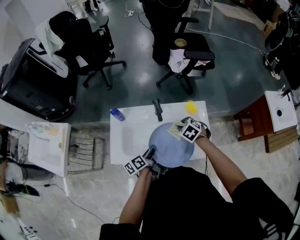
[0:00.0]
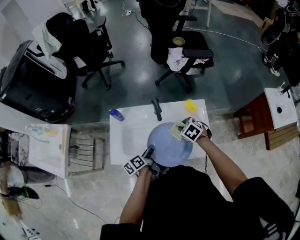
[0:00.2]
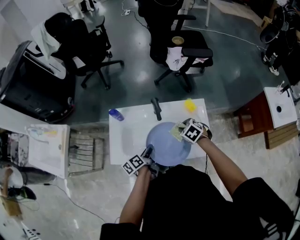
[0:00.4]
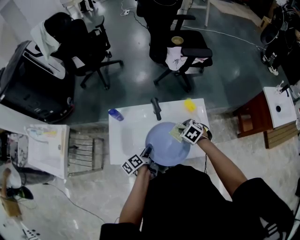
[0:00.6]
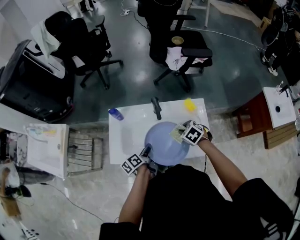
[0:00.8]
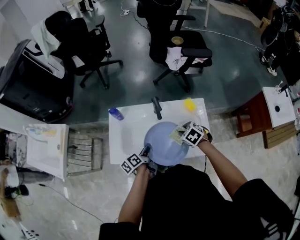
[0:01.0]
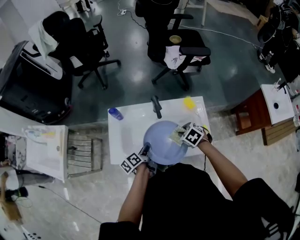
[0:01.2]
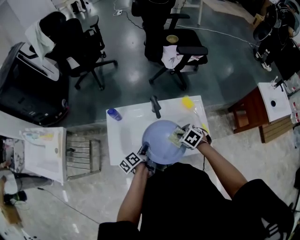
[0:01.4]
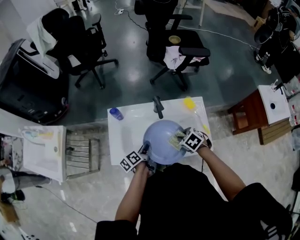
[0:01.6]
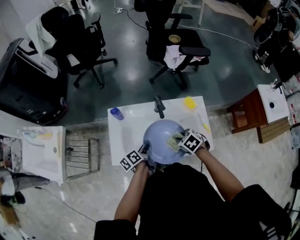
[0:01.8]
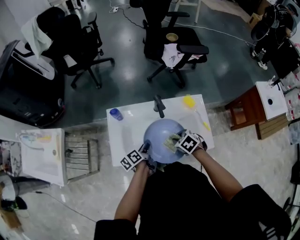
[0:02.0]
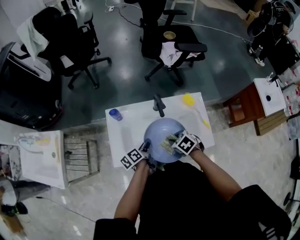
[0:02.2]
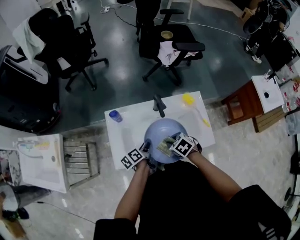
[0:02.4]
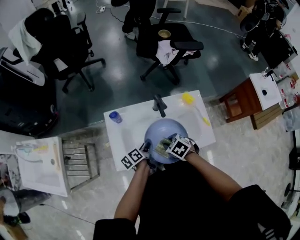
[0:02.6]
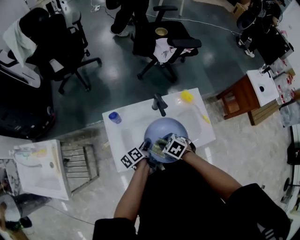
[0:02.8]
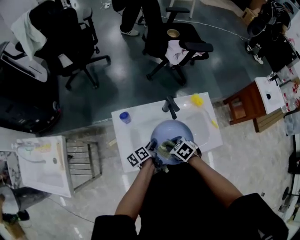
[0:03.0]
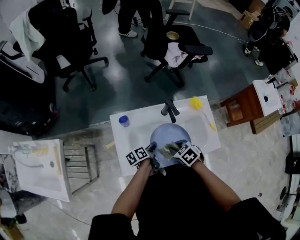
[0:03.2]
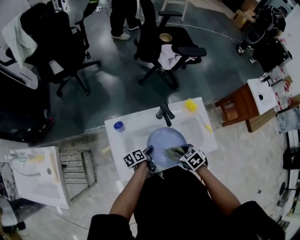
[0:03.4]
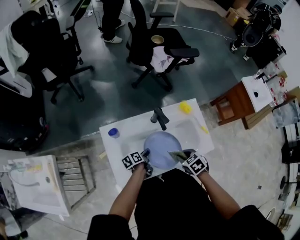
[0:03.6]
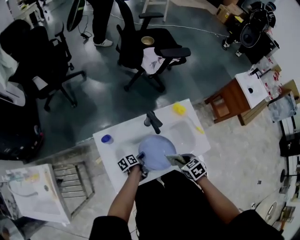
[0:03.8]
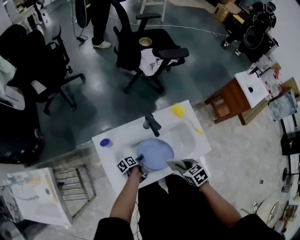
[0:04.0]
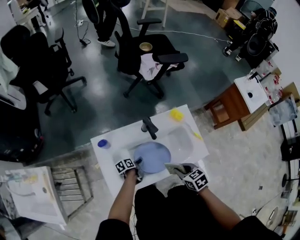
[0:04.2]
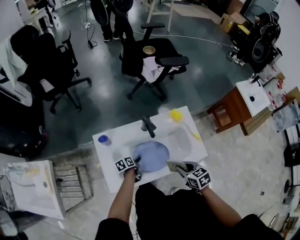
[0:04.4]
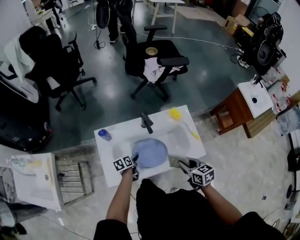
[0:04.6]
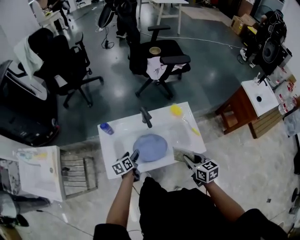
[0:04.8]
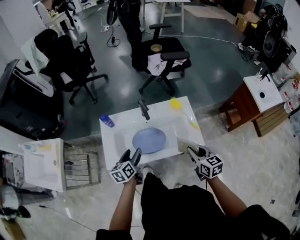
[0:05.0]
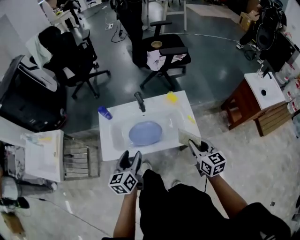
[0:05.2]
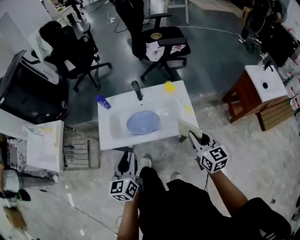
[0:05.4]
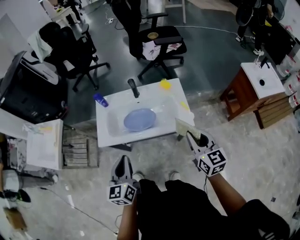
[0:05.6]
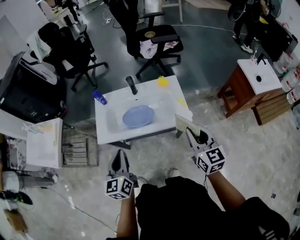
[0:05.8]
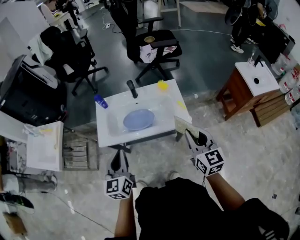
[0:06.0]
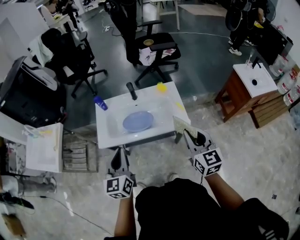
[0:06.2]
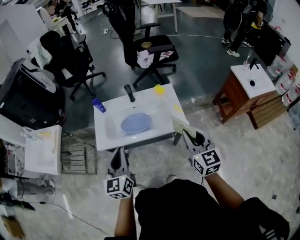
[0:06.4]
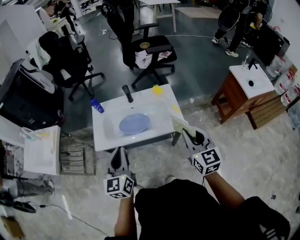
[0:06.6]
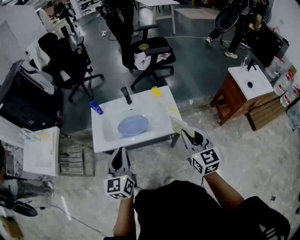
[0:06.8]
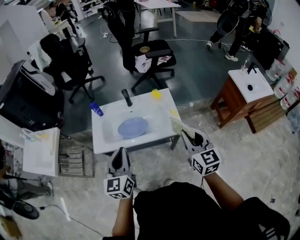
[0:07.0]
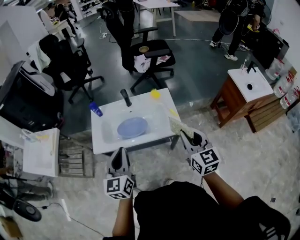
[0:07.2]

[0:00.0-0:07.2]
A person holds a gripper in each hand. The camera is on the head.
0:00.0 to 0:01.4: The right gripper goes some 5 cm backward, while the left gripper shifts by about 5 cm.
0:01.4 to 0:02.8: The left gripper moves about 5 cm; the right gripper travels to the left by approximately 15 cm.
0:02.8 to 0:04.4: The right gripper moves some 15 cm, and rotates about 40 degrees, while the left gripper moves downward, approximately 15 cm, rotates approximately 30 degrees, and opens.
0:04.4 to 0:05.8: The left gripper moves upward and backward, about 50 cm, tilts its fingers some 30 degrees upward, and closes up; the right gripper goes roughly 30 cm upward, to the right and backward, and tips its fingers upward by some 40 degrees.
0:05.8 to 0:07.2: The left gripper travels to the right and upward by roughly 5 cm.

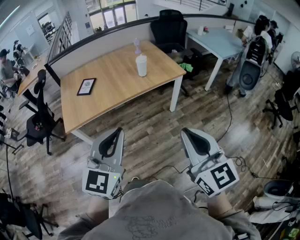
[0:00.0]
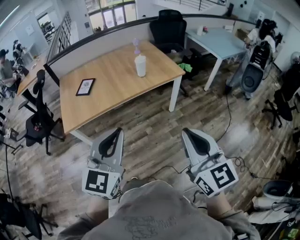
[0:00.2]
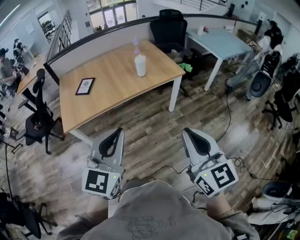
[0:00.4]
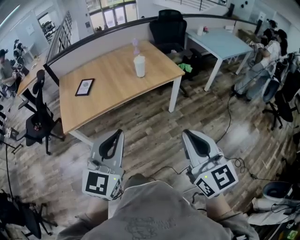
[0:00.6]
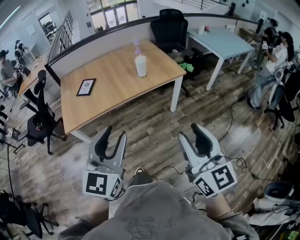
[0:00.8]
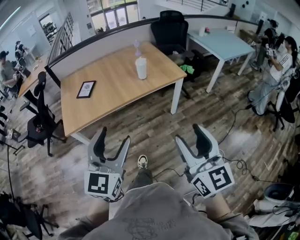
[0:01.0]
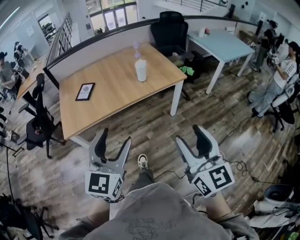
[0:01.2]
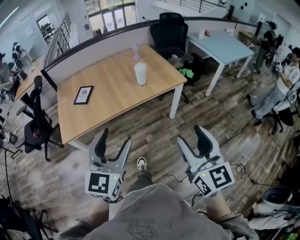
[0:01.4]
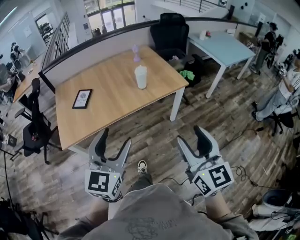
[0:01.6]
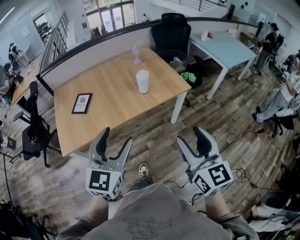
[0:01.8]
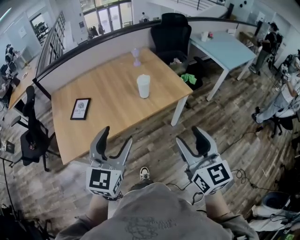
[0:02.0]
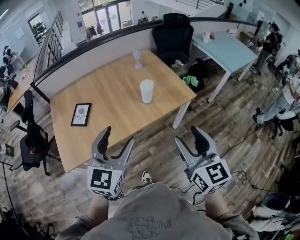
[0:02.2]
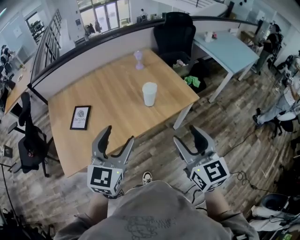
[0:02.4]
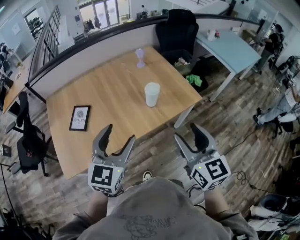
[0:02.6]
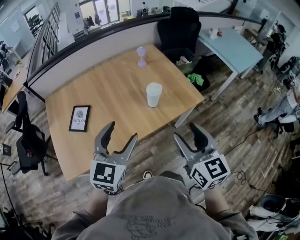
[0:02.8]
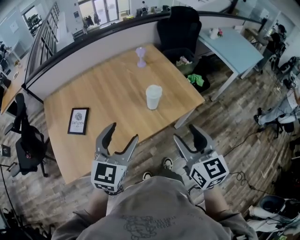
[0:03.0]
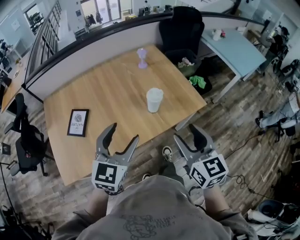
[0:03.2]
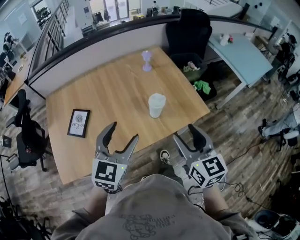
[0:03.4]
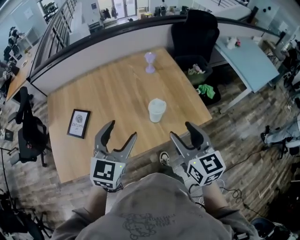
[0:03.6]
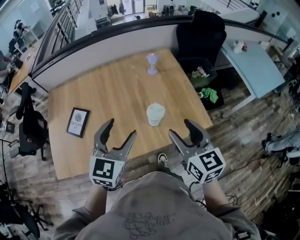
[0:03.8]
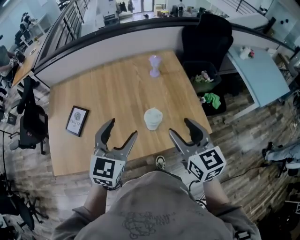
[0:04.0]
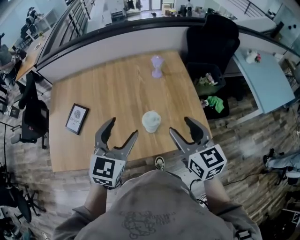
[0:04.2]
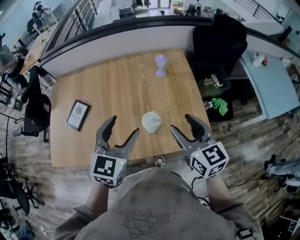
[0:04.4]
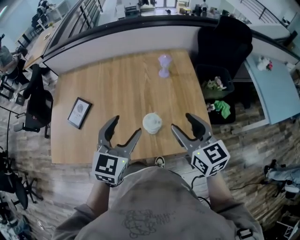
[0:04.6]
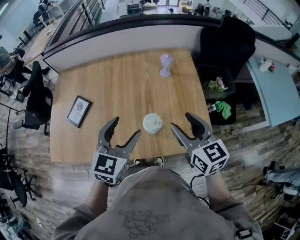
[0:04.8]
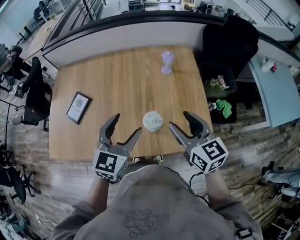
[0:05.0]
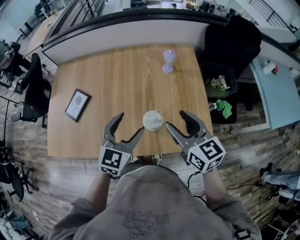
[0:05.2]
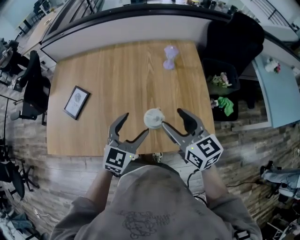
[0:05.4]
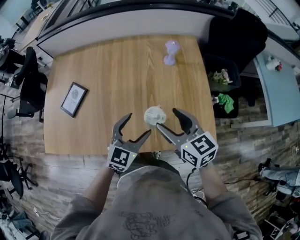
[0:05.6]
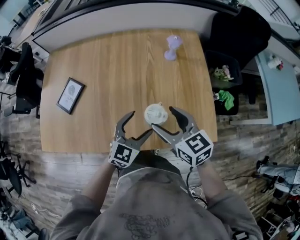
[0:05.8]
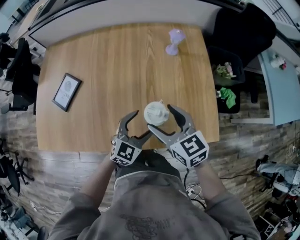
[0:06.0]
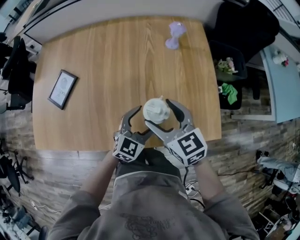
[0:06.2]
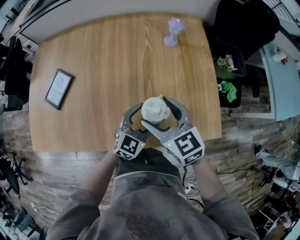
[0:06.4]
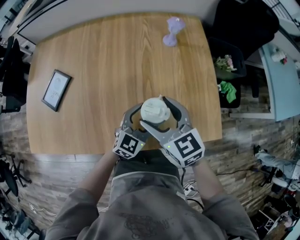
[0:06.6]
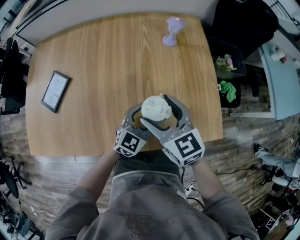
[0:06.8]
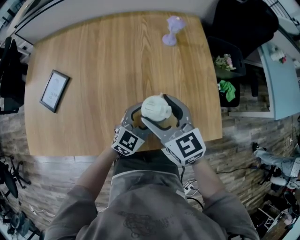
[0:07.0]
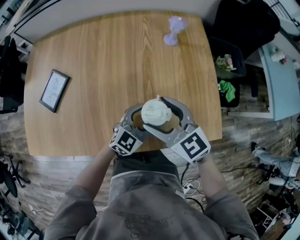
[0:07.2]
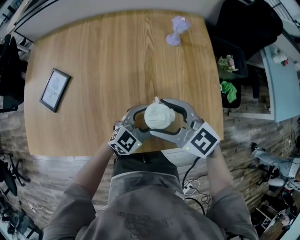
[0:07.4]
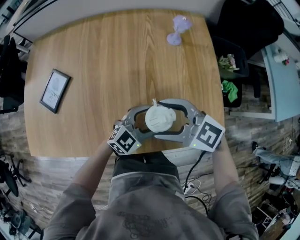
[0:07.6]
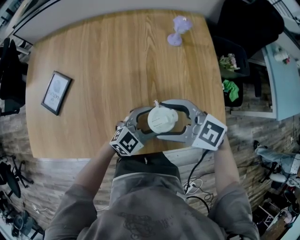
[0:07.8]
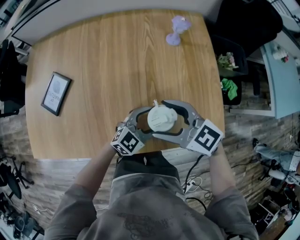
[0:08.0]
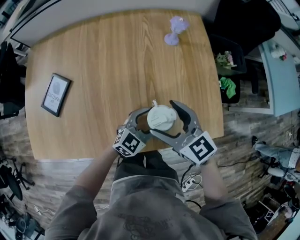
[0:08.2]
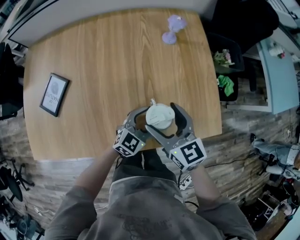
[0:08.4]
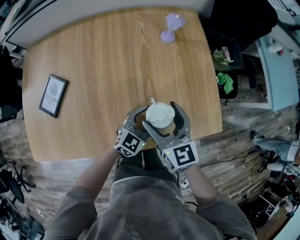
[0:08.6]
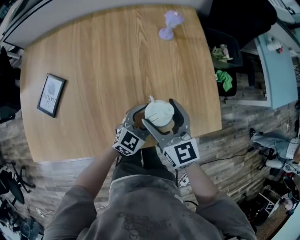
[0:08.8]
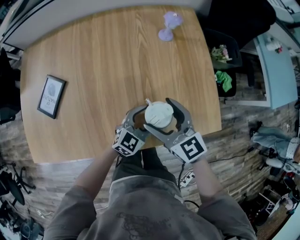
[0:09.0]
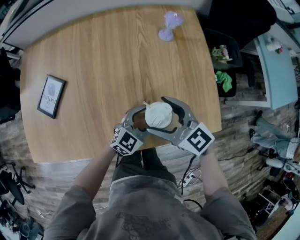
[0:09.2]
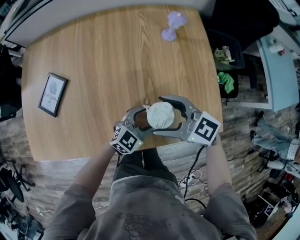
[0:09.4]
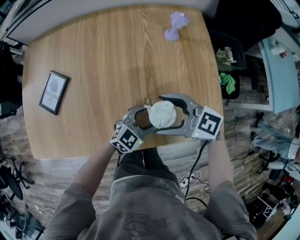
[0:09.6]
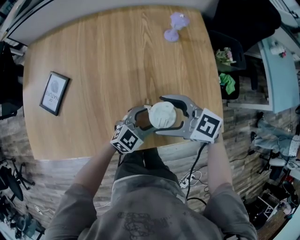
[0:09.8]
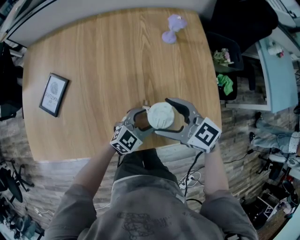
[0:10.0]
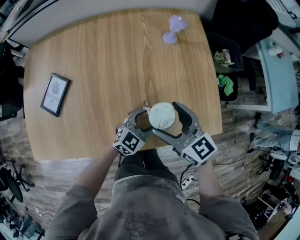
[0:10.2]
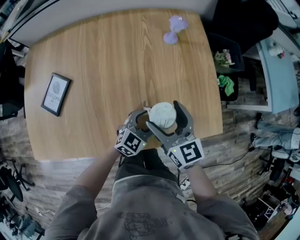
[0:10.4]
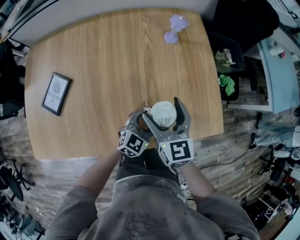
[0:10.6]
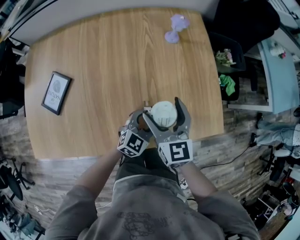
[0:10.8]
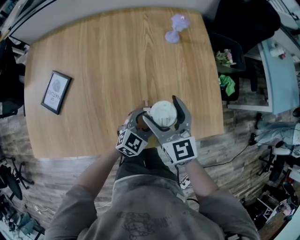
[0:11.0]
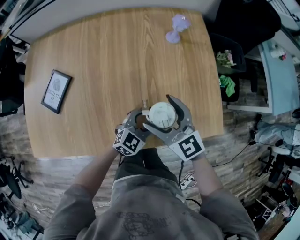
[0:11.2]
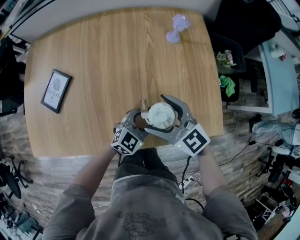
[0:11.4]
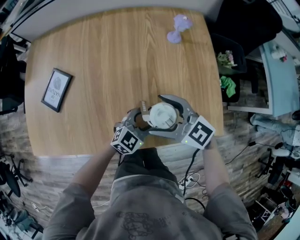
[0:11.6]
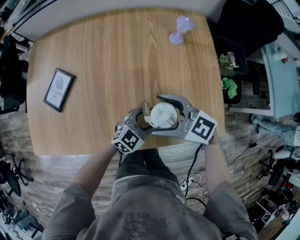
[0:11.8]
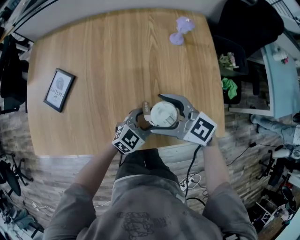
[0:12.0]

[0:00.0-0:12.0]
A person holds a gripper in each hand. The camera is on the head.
0:00.0 to 0:01.6: The two grippers go some 15 cm forward. The right gripper opens up. The left gripper opens.
0:01.6 to 0:03.0: The two grippers go roughly 30 cm forward.
0:03.0 to 0:04.4: The right gripper heads forward, covering roughly 25 cm, and changes its angle by some 30 degrees; the left gripper goes roughly 20 cm forward and to the right, and rotates approximately 20 degrees.
0:04.4 to 0:06.0: The right gripper is displaced downward, to the left and forward by approximately 20 cm. The left gripper goes about 25 cm downward.
0:06.0 to 0:07.6: The right gripper changes its angle by about 30 degrees. The left gripper travels downward by about 5 cm, and rotates approximately 20 degrees.
0:07.6 to 0:09.0: The right gripper rotates some 40 degrees.
0:10.4 to 0:12.0: The right gripper turns by roughly 40 degrees.

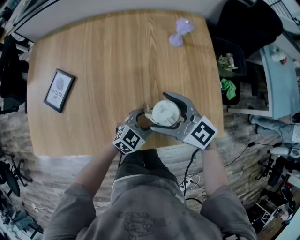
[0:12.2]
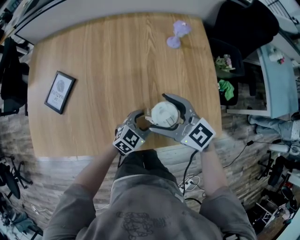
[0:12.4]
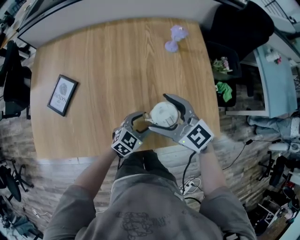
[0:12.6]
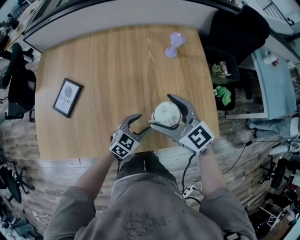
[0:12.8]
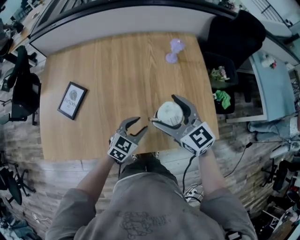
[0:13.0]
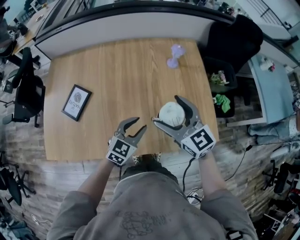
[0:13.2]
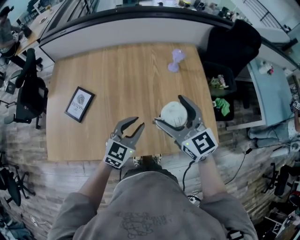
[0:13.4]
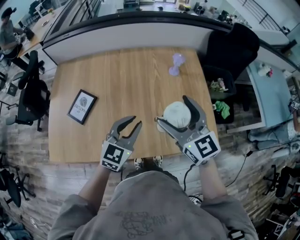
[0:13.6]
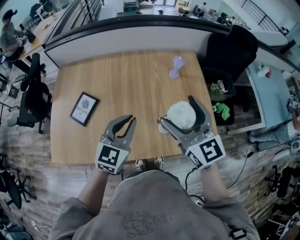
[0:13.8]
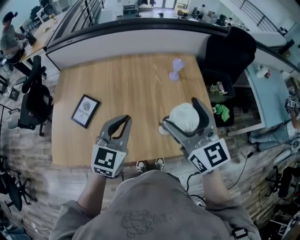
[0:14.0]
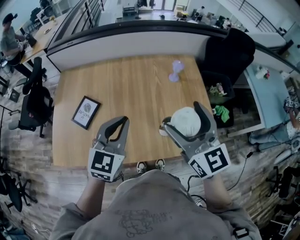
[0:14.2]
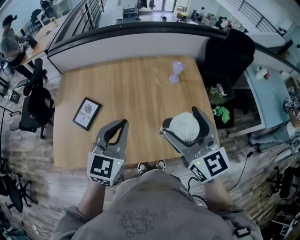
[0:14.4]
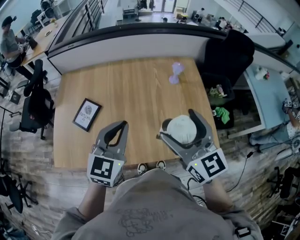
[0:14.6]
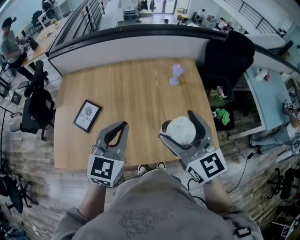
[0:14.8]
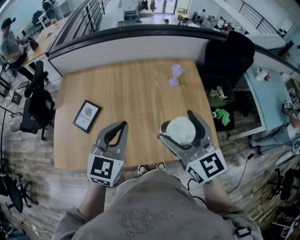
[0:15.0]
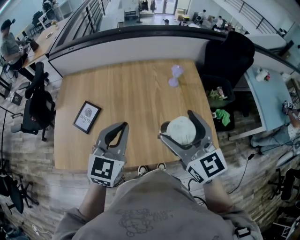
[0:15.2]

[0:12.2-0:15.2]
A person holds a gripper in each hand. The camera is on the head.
0:12.2 to 0:13.8: The left gripper travels upward and to the left by roughly 30 cm, changes its angle by approximately 30 degrees, and closes, while the right gripper travels upward by some 25 cm, and rotates some 30 degrees.
0:13.8 to 0:15.2: The left gripper heads upward, covering roughly 5 cm.

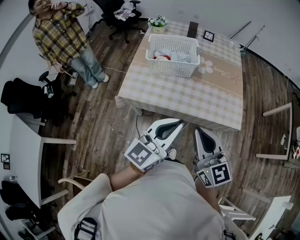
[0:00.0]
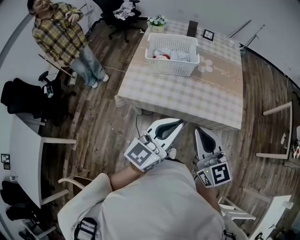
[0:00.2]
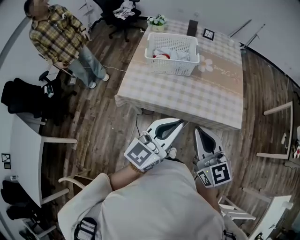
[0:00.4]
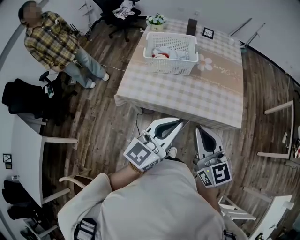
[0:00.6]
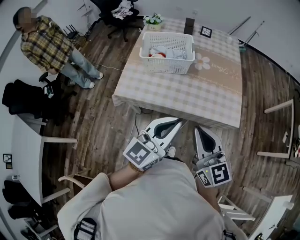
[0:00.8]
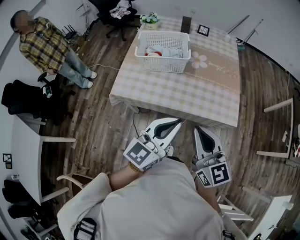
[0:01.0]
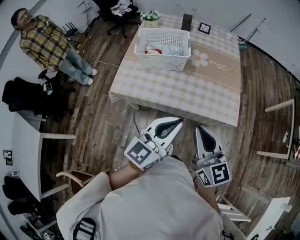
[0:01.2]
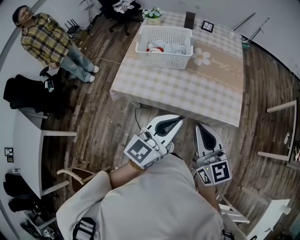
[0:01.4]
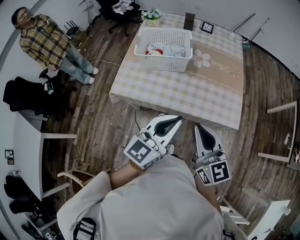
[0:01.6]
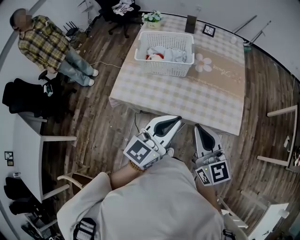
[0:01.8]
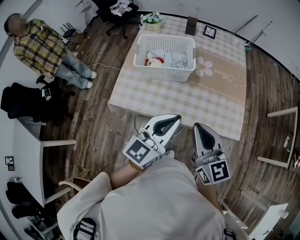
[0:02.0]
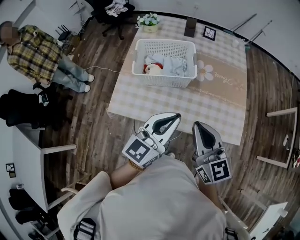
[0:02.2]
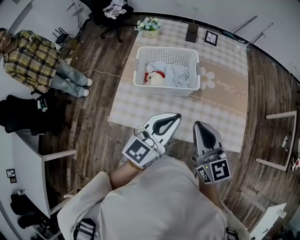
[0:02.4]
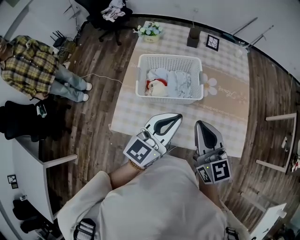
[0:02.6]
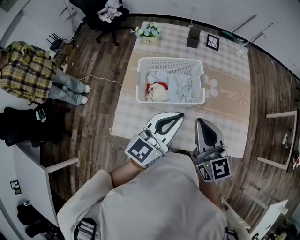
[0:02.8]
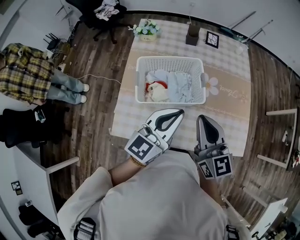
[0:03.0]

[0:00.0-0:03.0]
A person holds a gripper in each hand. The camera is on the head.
0:00.0 to 0:01.6: Both grippers move to the right and forward, roughly 10 cm.
0:01.6 to 0:03.0: The grippers both shift forward and to the left by roughly 35 cm.
